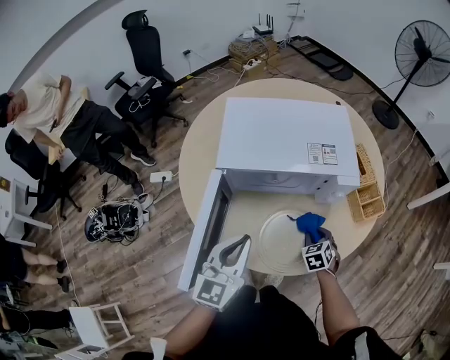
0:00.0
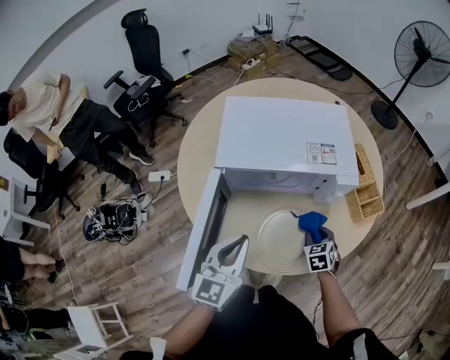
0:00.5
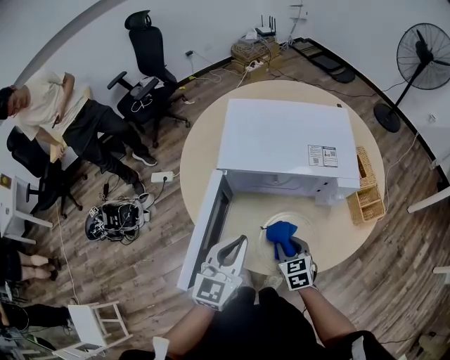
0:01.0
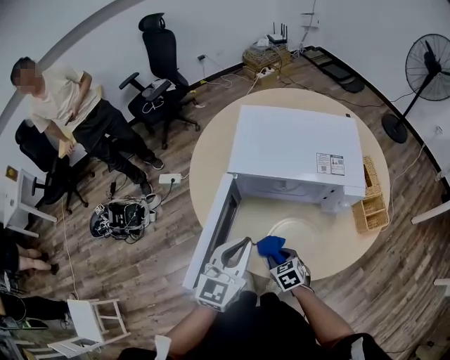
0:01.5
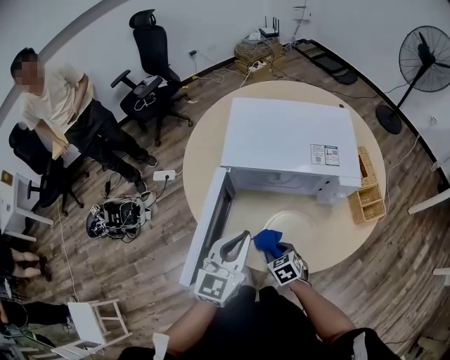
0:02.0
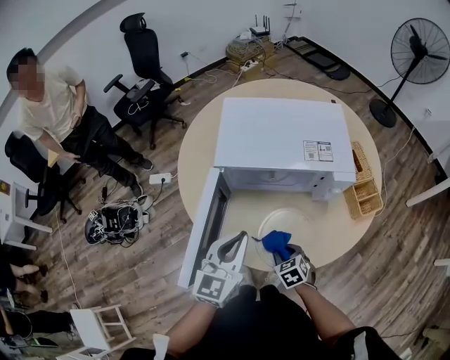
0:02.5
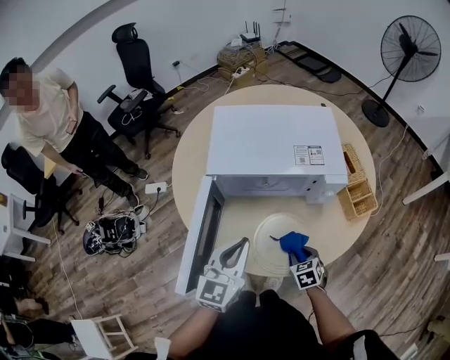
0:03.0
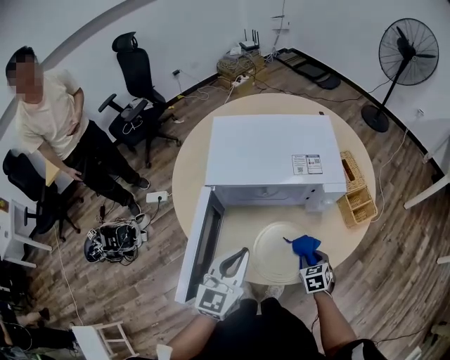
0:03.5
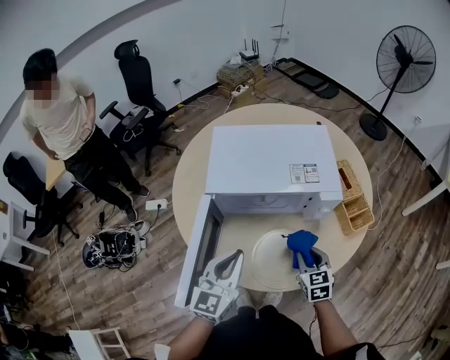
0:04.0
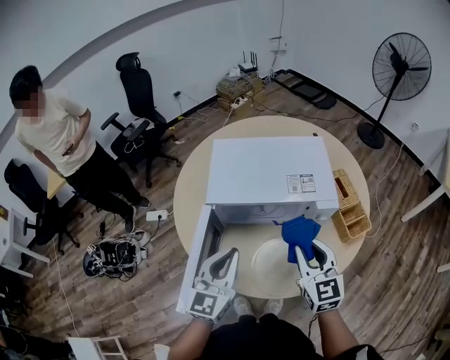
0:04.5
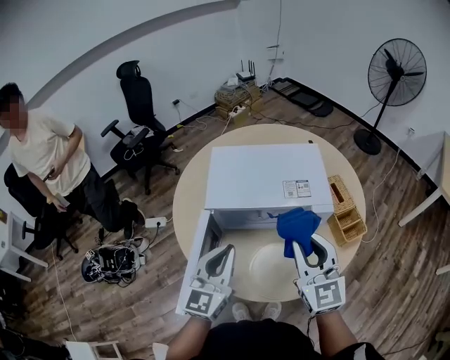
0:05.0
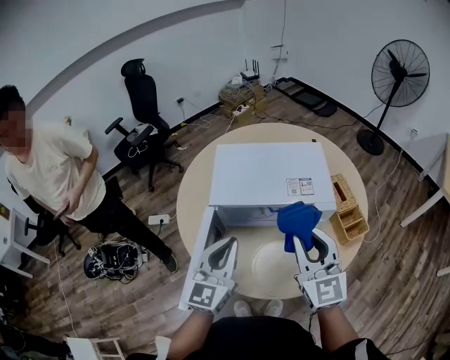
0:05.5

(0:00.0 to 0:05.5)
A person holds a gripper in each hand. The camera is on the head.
0:00.0 - 0:02.0: The right gripper goes approximately 20 cm to the left and backward, and changes its angle by roughly 20 degrees.
0:02.0 - 0:03.5: The right gripper shifts some 20 cm to the right, and turns by approximately 20 degrees.
0:03.5 - 0:05.5: The left gripper heads upward, covering some 10 cm. Meanwhile the right gripper shifts roughly 40 cm upward, and tilts its fingers about 50 degrees upward.

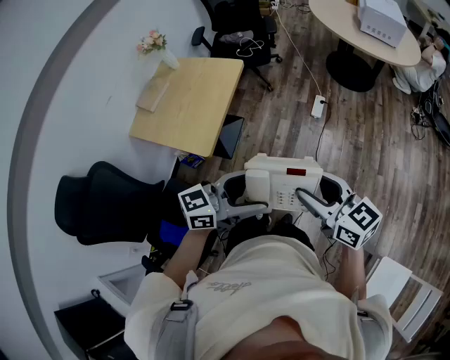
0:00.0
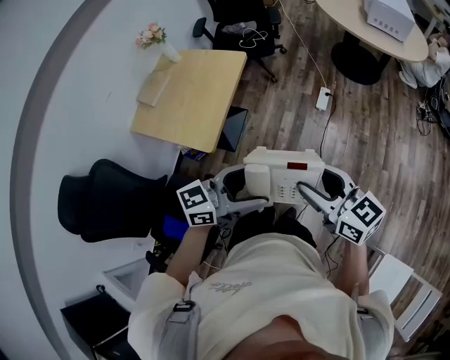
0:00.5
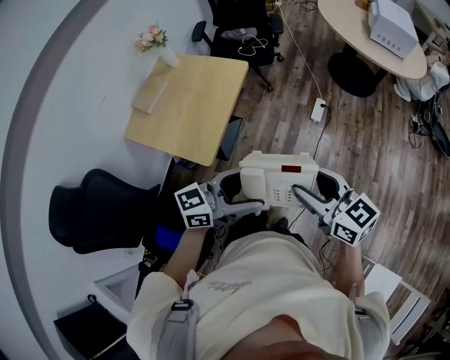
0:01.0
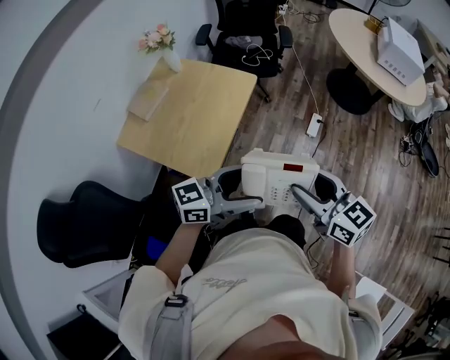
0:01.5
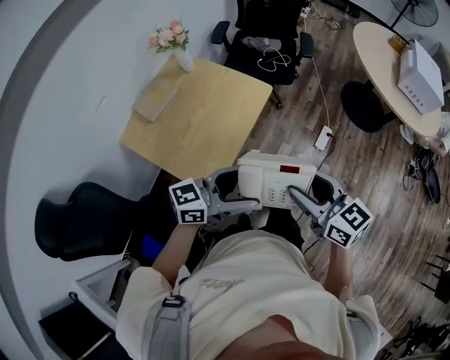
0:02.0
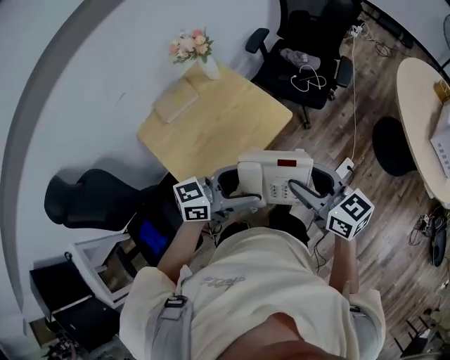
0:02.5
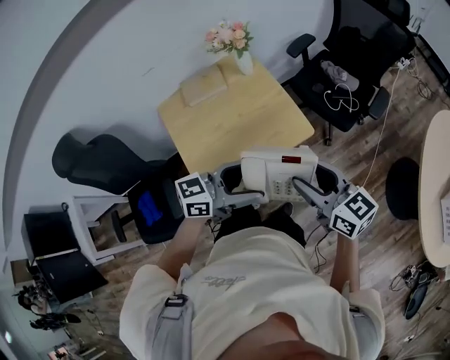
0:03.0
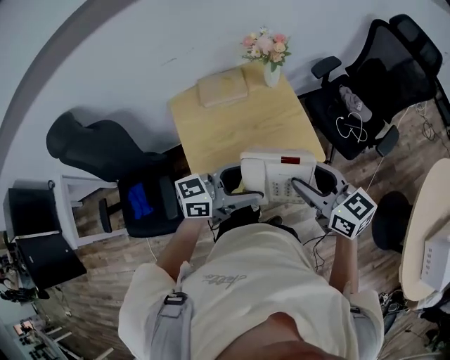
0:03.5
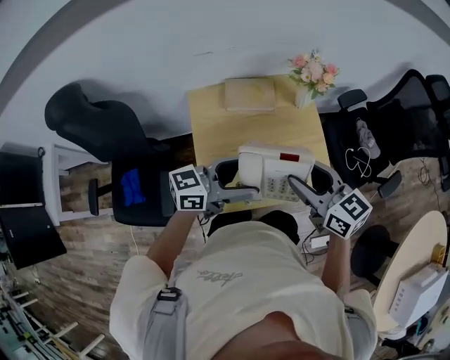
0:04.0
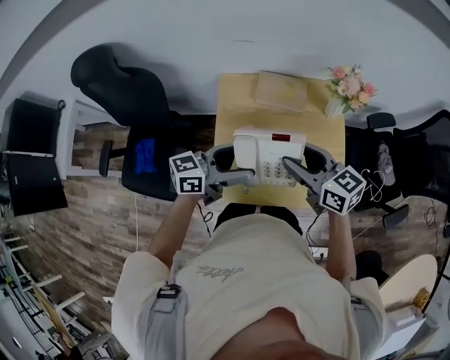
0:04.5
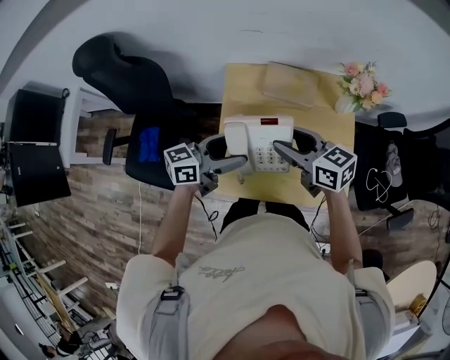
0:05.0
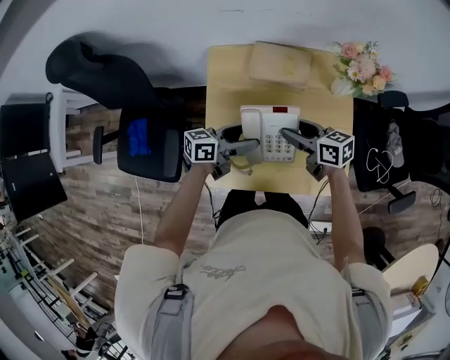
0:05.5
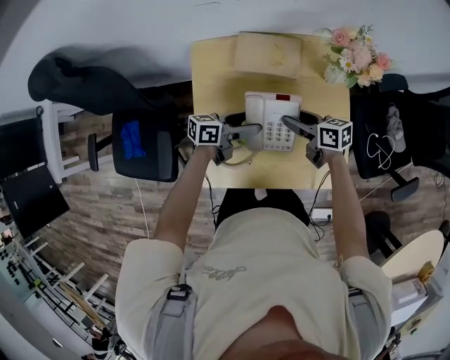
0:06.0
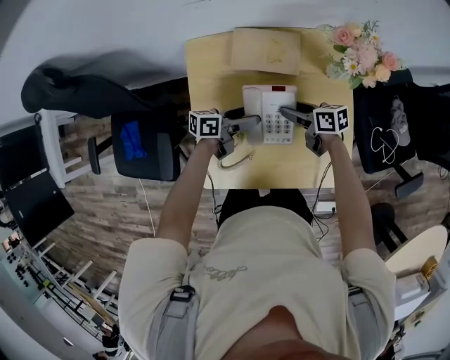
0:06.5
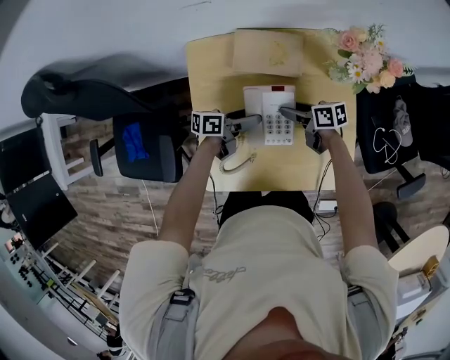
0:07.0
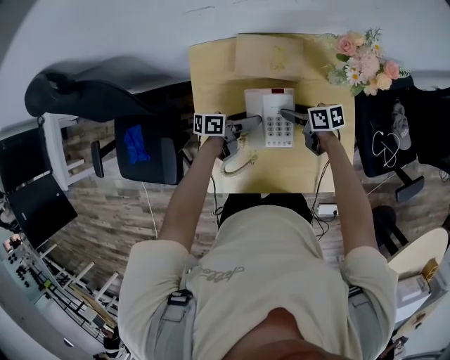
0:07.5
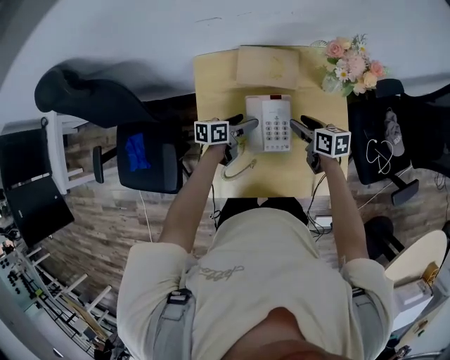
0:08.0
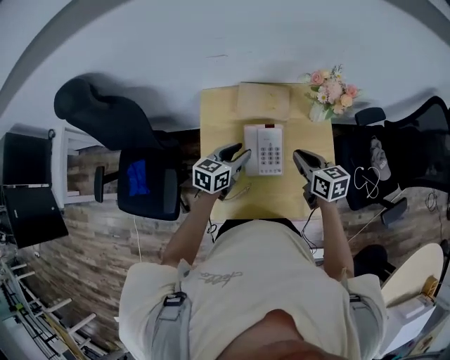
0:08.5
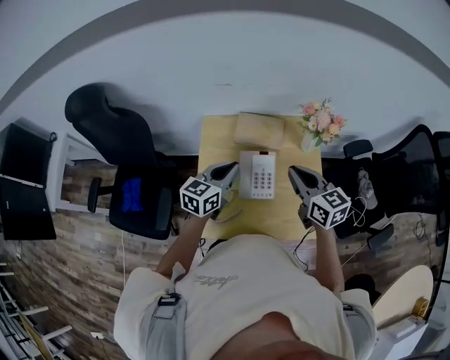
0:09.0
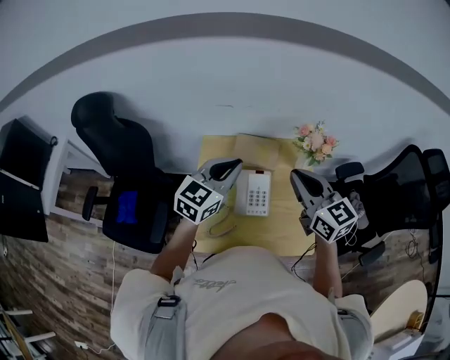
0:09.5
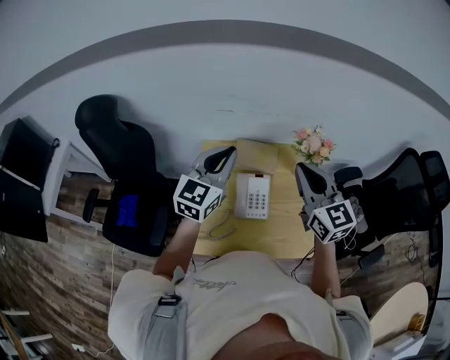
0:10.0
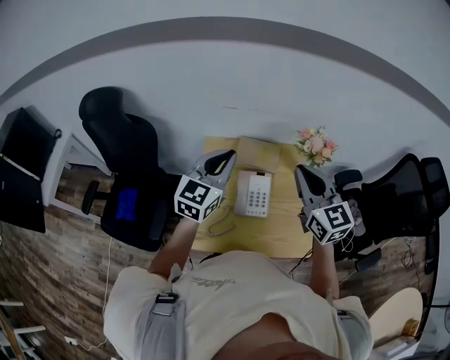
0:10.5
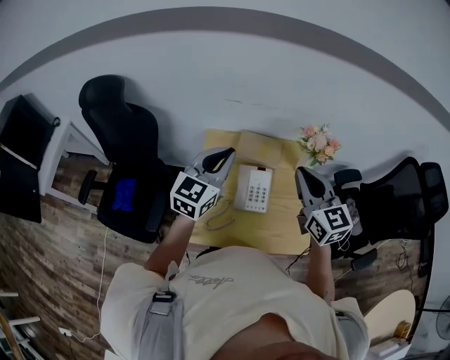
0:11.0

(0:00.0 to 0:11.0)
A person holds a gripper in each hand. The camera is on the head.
0:00.0 - 0:02.0: The grippers both shift forward and to the left by about 35 cm.
0:02.0 - 0:03.5: The left gripper changes place by approximately 20 cm, and changes its angle by roughly 40 degrees, while the right gripper changes place by roughly 25 cm, and rotates roughly 40 degrees.
0:03.5 - 0:05.5: The right gripper ends up approximately 35 cm from where it was, and rotates about 40 degrees. The left gripper shifts by about 30 cm, and changes its angle by about 40 degrees.
0:05.5 - 0:07.5: Both grippers travel together downward, roughly 15 cm. The left gripper turns by some 20 degrees. The right gripper changes its angle by some 20 degrees.
0:07.5 - 0:09.0: The grippers both shift upward by about 30 cm. The right gripper changes its angle by roughly 50 degrees, and closes up. The left gripper twists roughly 50 degrees clockwise, seen from behind, and closes.
0:09.0 - 0:11.0: Both grippers travel together upward, roughly 15 cm. The left gripper swivels some 30 degrees. The right gripper turns by some 20 degrees.

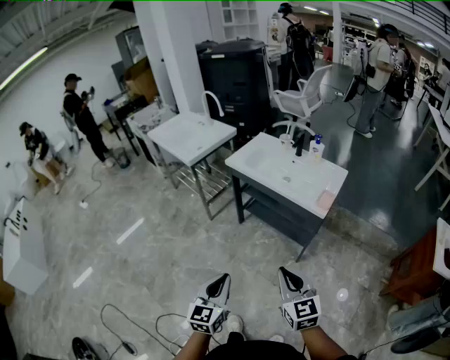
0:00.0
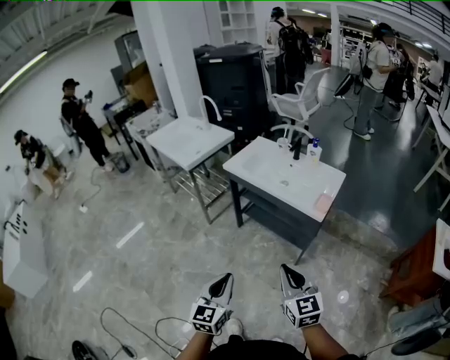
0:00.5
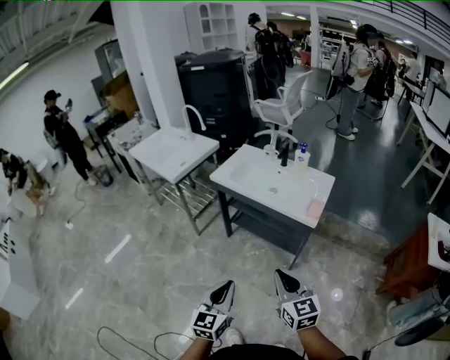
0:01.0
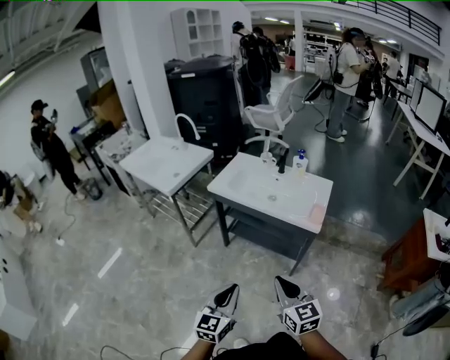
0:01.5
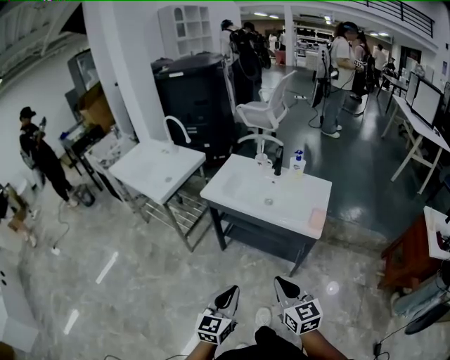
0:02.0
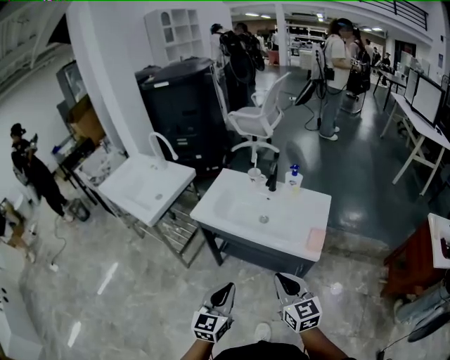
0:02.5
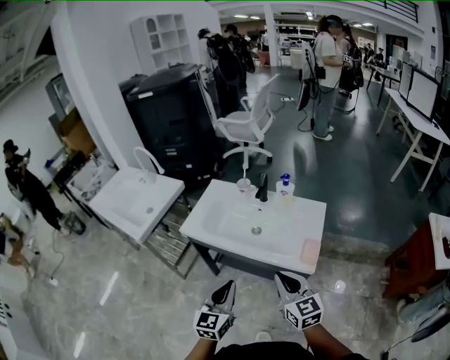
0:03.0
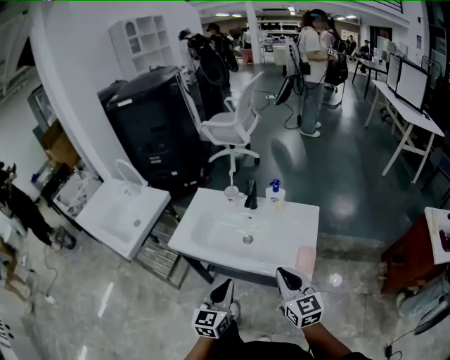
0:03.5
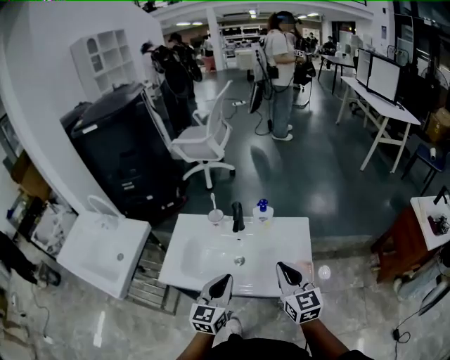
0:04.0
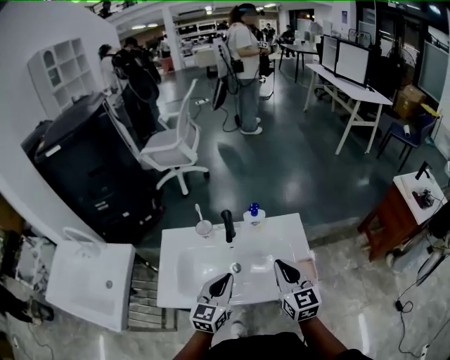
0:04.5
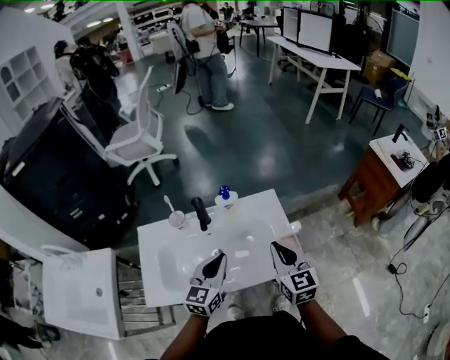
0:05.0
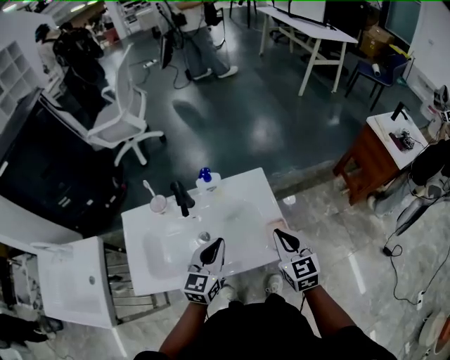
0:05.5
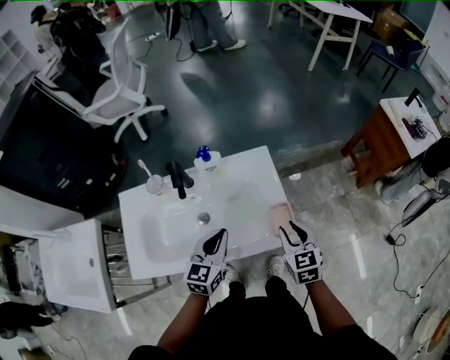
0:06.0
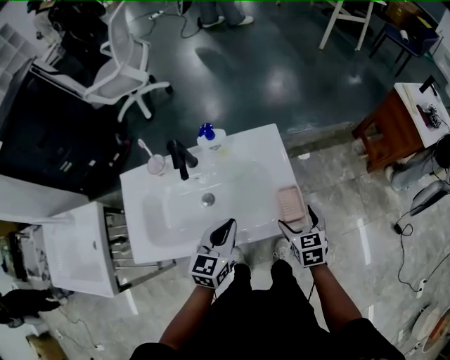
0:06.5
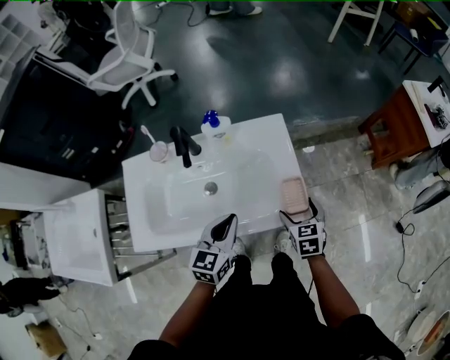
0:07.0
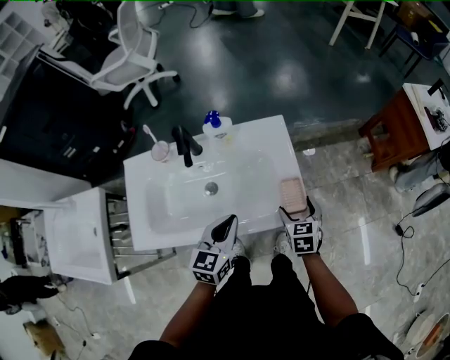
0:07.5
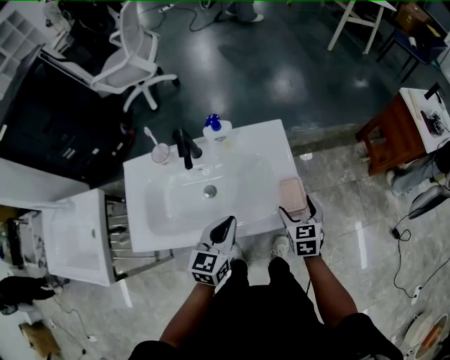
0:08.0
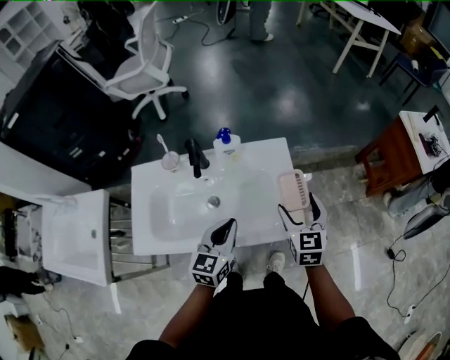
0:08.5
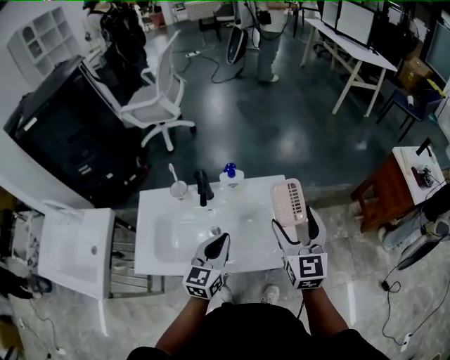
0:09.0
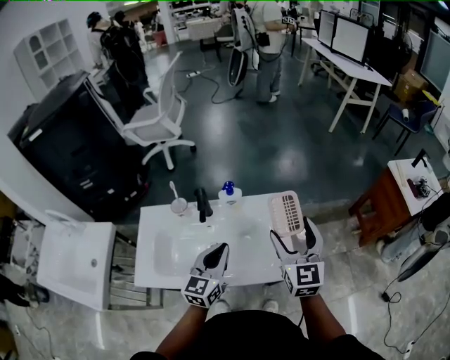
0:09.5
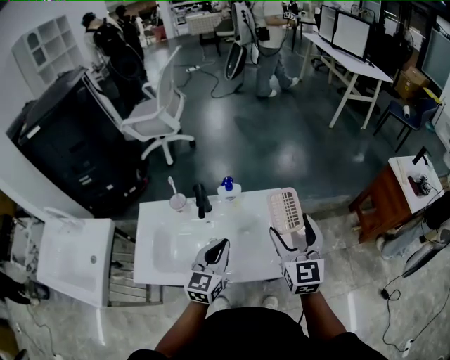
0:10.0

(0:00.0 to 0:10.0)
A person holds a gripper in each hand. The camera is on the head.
0:00.0 - 0:02.0: The grippers both shift forward by about 15 cm.
0:02.0 - 0:04.0: Both grippers move forward, roughly 40 cm. The right gripper turns by approximately 20 degrees.
0:04.0 - 0:06.0: The right gripper goes about 20 cm downward and to the right, and turns by roughly 30 degrees; the left gripper shifts roughly 15 cm forward, downward and to the right, and rotates approximately 30 degrees.
0:06.0 - 0:08.0: The right gripper moves downward, approximately 5 cm, and opens its fingers.
0:08.0 - 0:10.0: The left gripper shifts about 10 cm upward and forward; the right gripper shifts roughly 25 cm upward, and tips its fingers upward by some 30 degrees.
